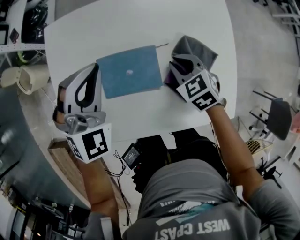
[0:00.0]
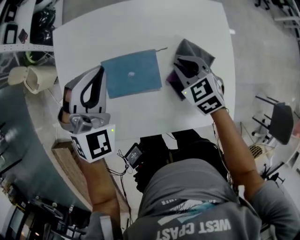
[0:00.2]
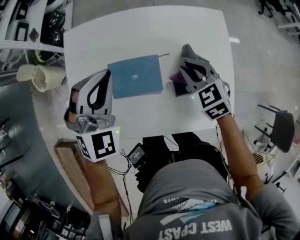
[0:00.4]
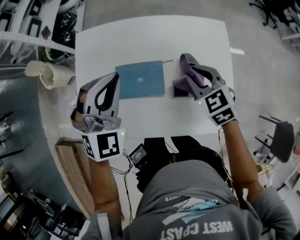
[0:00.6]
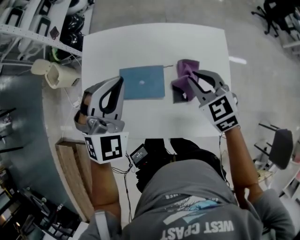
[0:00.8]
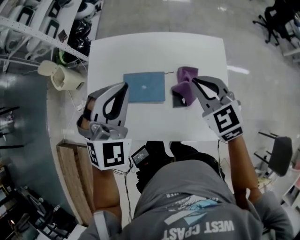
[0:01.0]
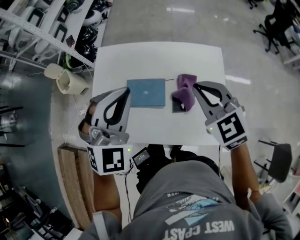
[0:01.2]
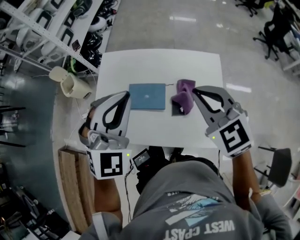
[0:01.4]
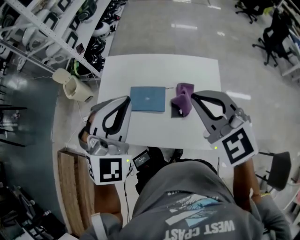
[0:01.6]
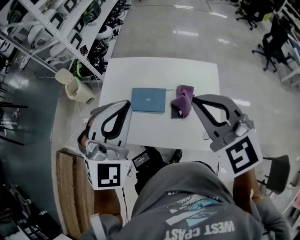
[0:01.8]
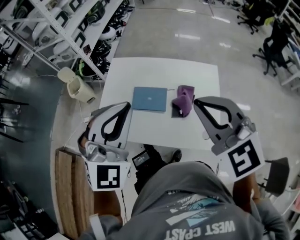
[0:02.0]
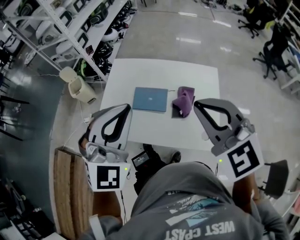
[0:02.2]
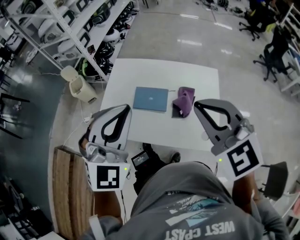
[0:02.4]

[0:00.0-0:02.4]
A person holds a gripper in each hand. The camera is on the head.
0.0 to 1.2 s: The left gripper travels upward and backward by some 20 cm. Meanwhile the right gripper shifts about 30 cm upward, and turns by about 30 degrees.
1.2 to 2.4 s: The right gripper travels upward and backward by about 20 cm. Meanwhile the left gripper goes approximately 15 cm backward and upward.

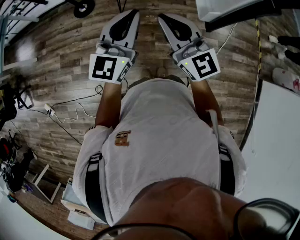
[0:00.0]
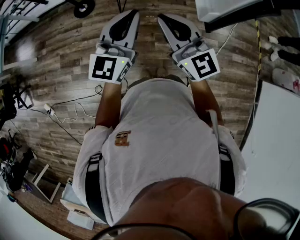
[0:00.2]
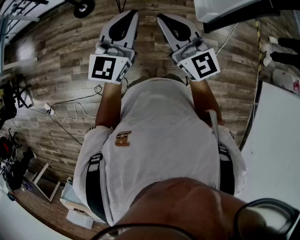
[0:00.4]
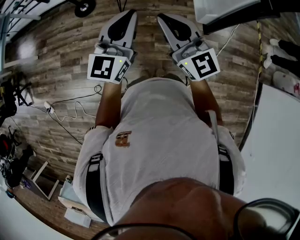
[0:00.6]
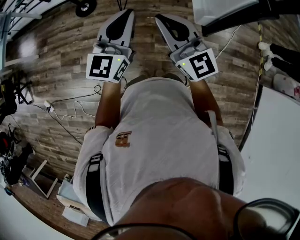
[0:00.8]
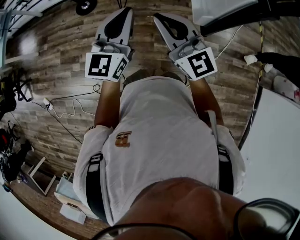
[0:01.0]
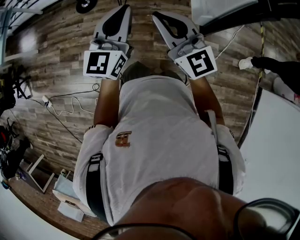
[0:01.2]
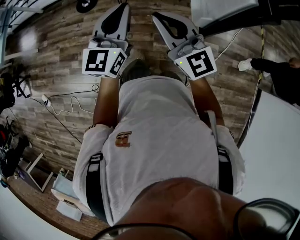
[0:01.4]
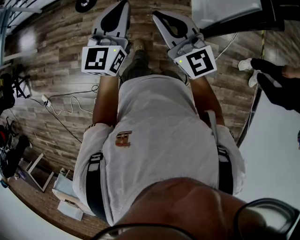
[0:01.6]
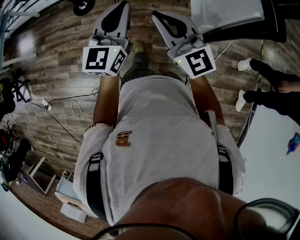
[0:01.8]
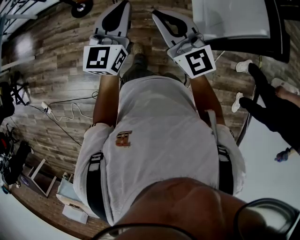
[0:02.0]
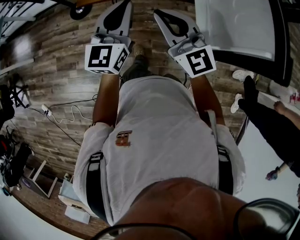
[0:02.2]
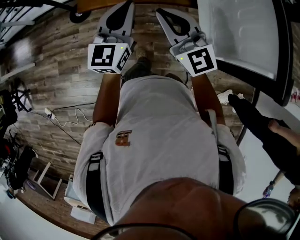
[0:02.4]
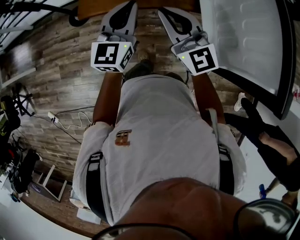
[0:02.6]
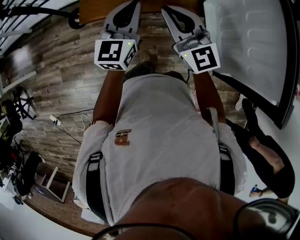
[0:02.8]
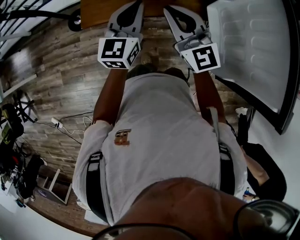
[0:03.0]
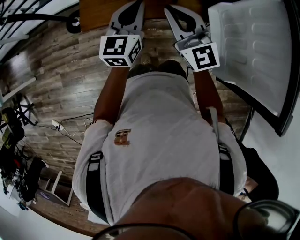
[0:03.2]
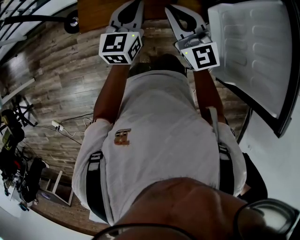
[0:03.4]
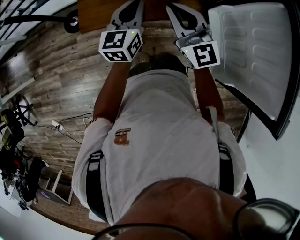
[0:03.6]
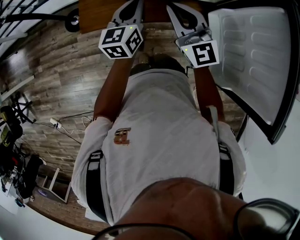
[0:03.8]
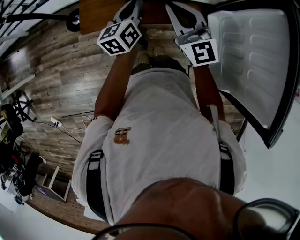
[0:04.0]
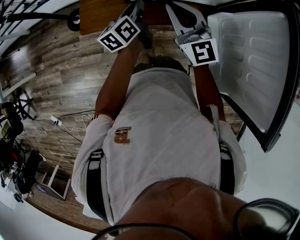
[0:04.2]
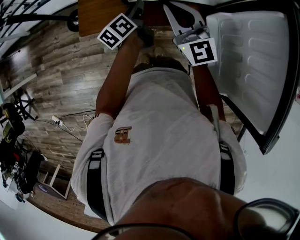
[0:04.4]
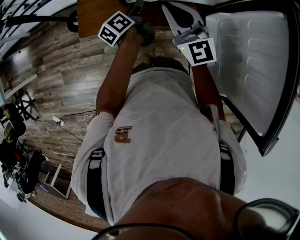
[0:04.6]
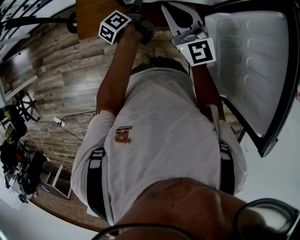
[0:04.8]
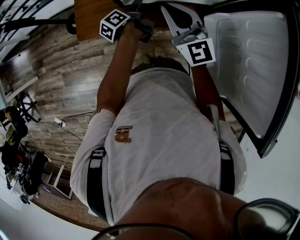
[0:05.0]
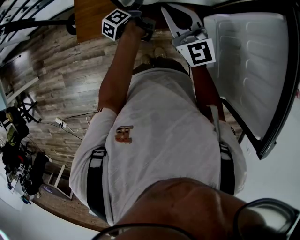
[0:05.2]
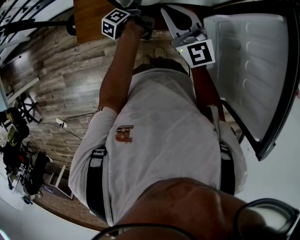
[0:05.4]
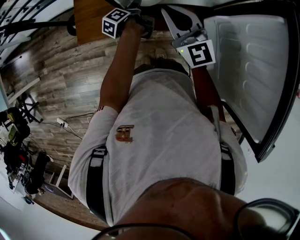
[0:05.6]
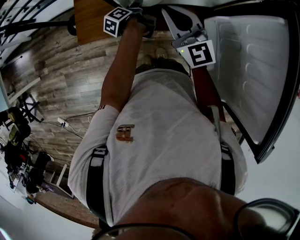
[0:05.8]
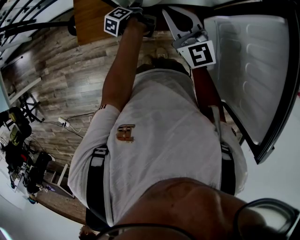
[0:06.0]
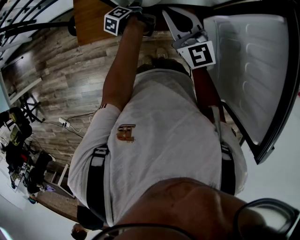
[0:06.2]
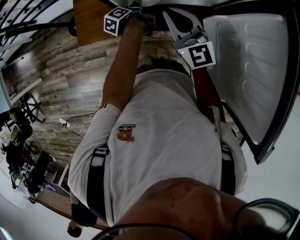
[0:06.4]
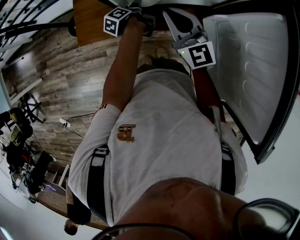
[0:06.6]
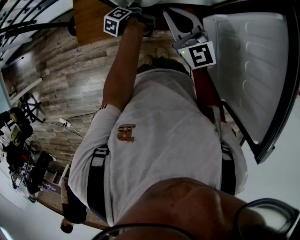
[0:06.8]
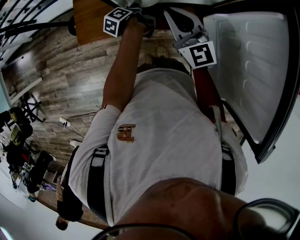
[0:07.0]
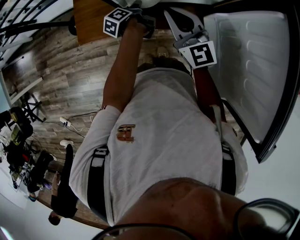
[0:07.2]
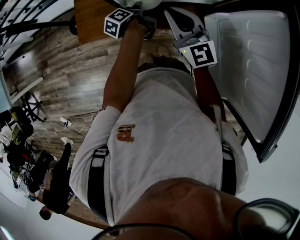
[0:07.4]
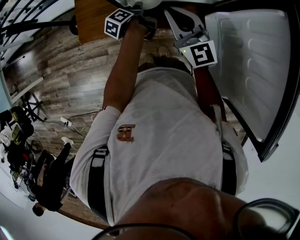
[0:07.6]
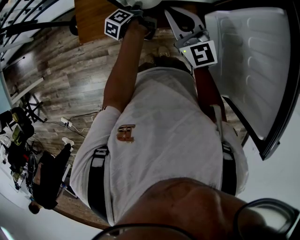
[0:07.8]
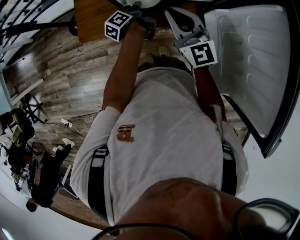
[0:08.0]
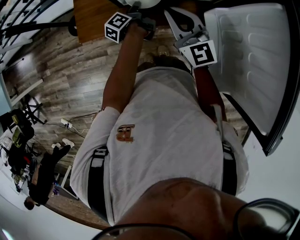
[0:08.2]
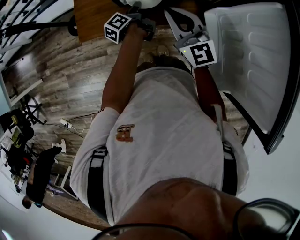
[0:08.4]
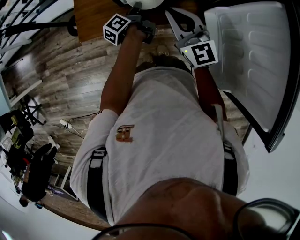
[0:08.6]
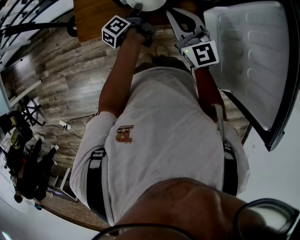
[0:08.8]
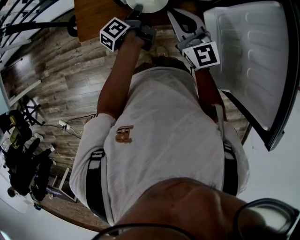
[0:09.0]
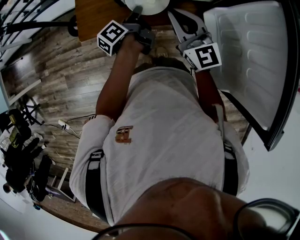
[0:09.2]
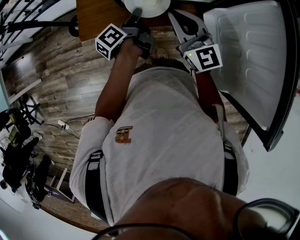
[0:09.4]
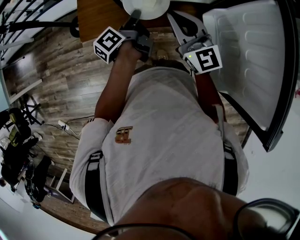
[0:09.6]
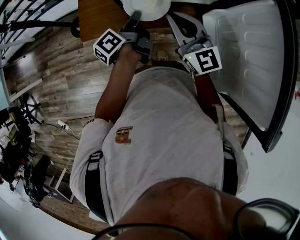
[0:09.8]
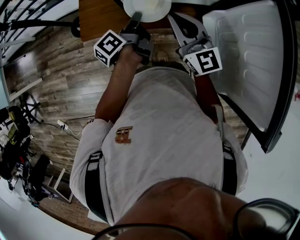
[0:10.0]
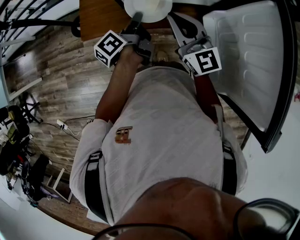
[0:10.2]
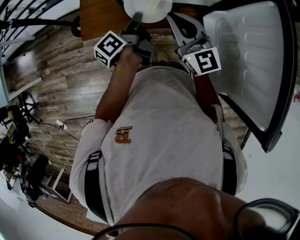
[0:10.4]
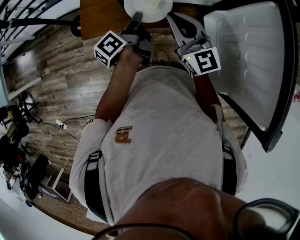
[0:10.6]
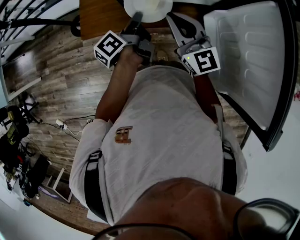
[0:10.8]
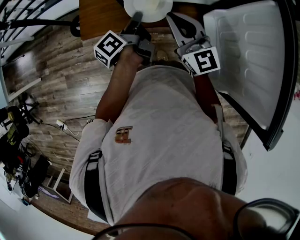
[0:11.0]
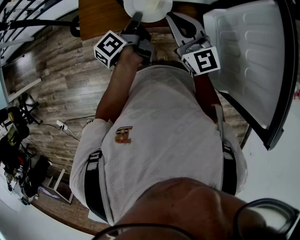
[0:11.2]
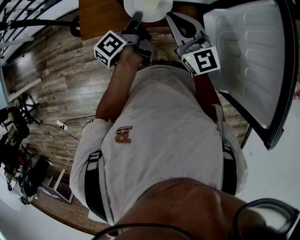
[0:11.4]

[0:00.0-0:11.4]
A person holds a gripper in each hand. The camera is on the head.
0.0 to 1.4 s: The right gripper goes roughly 10 cm to the right and forward, while the left gripper goes approximately 10 cm forward and to the right.
1.4 to 2.8 s: Both grippers travel together forward, some 35 cm.
2.8 to 4.2 s: The left gripper goes roughly 20 cm forward and downward, and twists about 40 degrees counterclockwise, seen from behind. Meanwhile the right gripper heads forward, covering about 10 cm.
4.2 to 5.6 s: The left gripper moves downward and forward, roughly 15 cm, rolls counterclockwise, seen from behind, by about 40 degrees, and opens its fingers, while the right gripper moves some 5 cm.
5.6 to 7.2 s: The left gripper closes.
7.2 to 8.6 s: The left gripper closes its fingers.
8.6 to 10.0 s: The left gripper shifts roughly 10 cm upward and backward.
10.0 to 11.4 s: Both grippers stay about where they are.

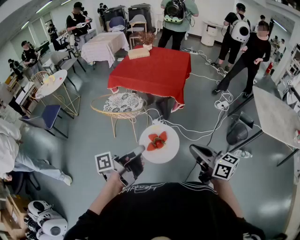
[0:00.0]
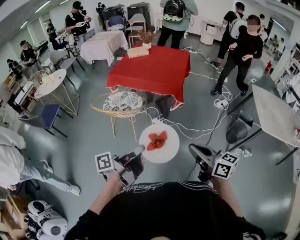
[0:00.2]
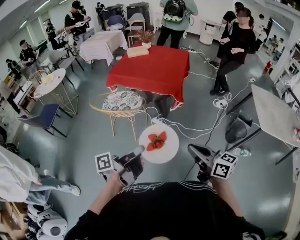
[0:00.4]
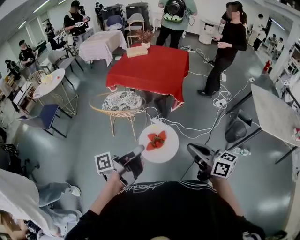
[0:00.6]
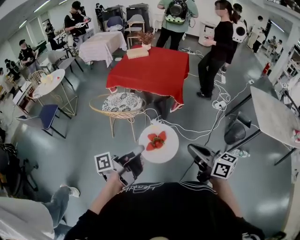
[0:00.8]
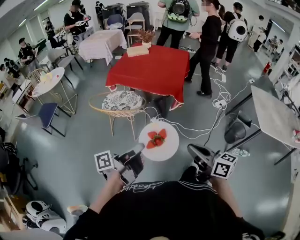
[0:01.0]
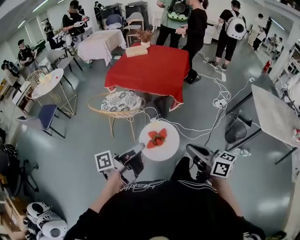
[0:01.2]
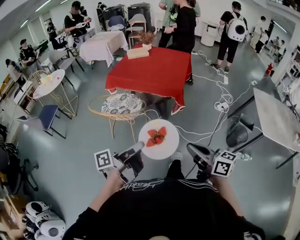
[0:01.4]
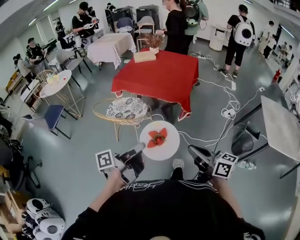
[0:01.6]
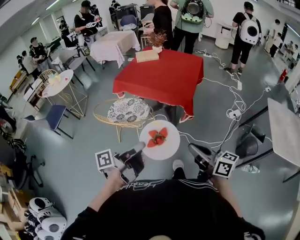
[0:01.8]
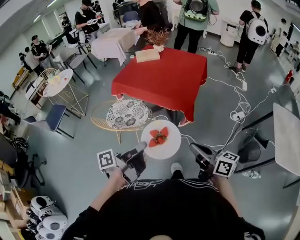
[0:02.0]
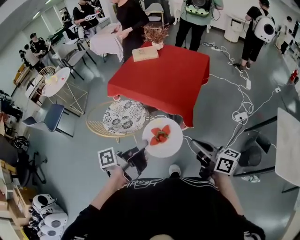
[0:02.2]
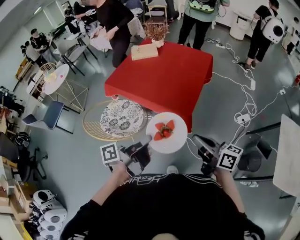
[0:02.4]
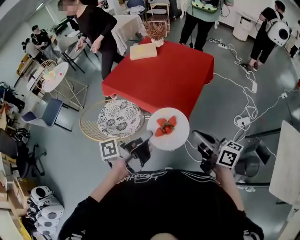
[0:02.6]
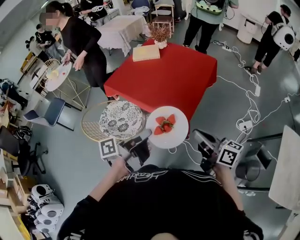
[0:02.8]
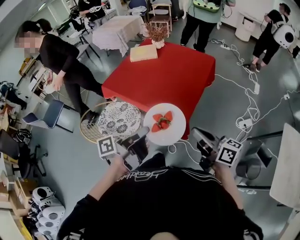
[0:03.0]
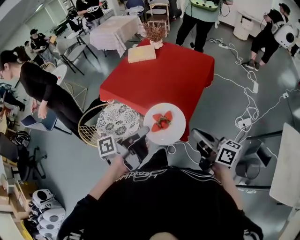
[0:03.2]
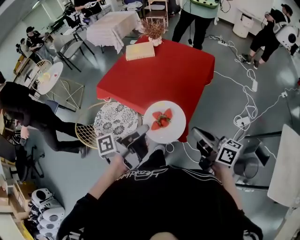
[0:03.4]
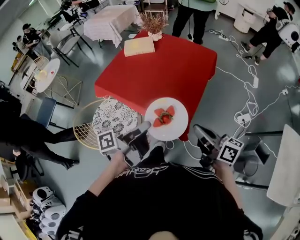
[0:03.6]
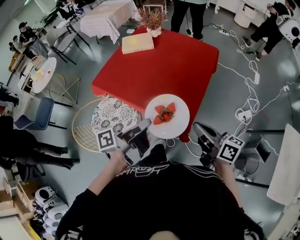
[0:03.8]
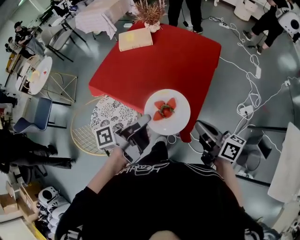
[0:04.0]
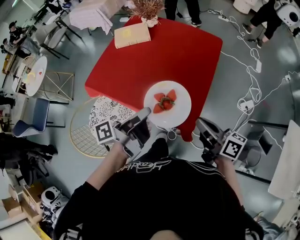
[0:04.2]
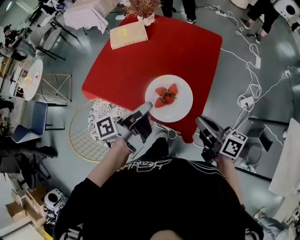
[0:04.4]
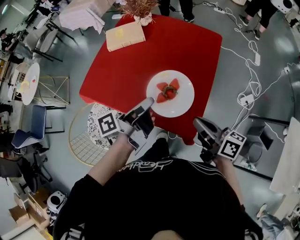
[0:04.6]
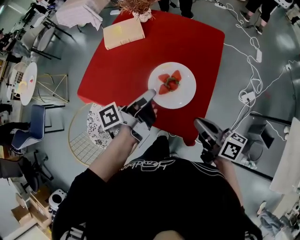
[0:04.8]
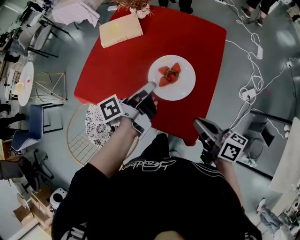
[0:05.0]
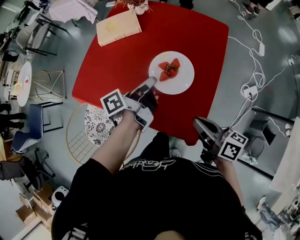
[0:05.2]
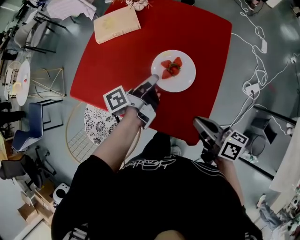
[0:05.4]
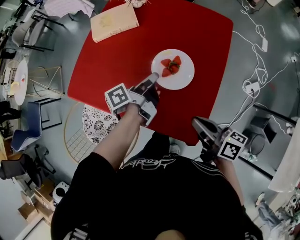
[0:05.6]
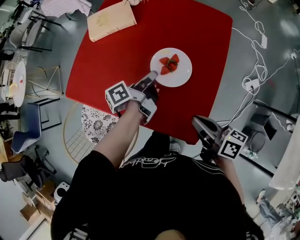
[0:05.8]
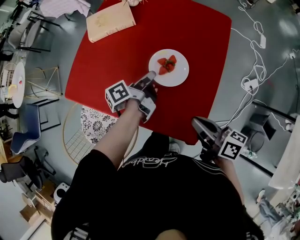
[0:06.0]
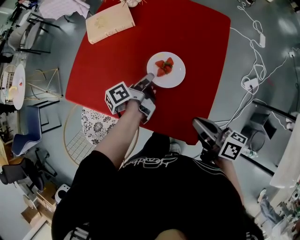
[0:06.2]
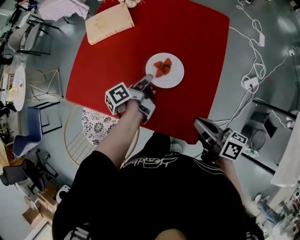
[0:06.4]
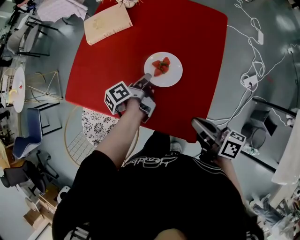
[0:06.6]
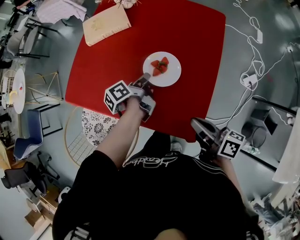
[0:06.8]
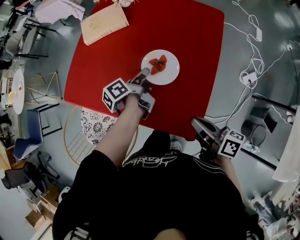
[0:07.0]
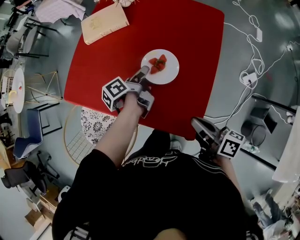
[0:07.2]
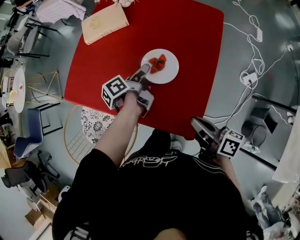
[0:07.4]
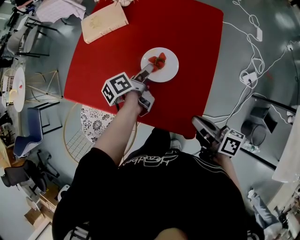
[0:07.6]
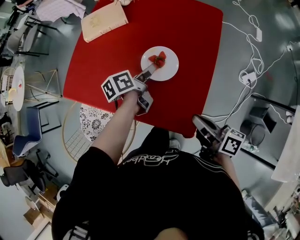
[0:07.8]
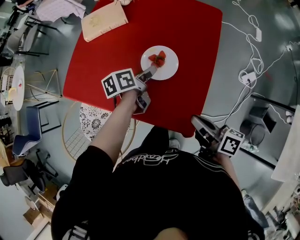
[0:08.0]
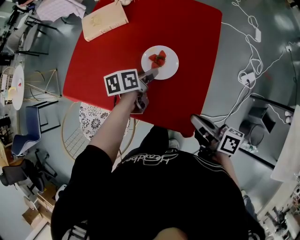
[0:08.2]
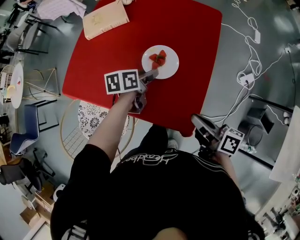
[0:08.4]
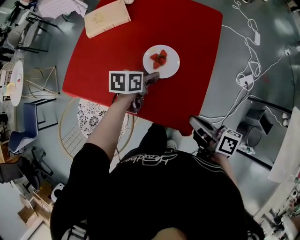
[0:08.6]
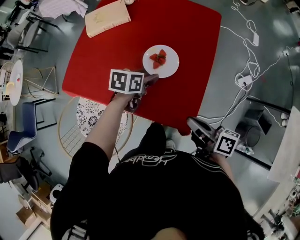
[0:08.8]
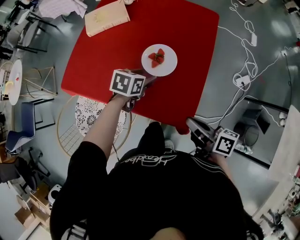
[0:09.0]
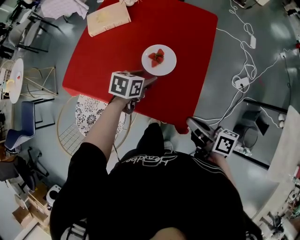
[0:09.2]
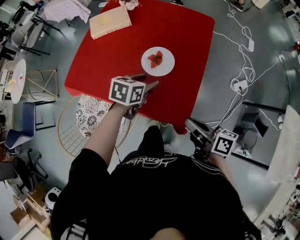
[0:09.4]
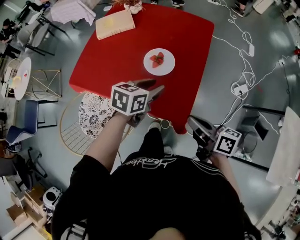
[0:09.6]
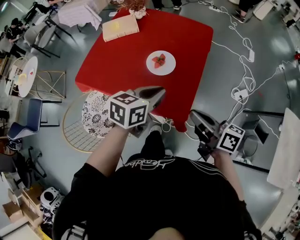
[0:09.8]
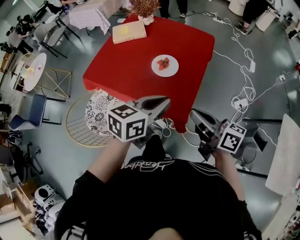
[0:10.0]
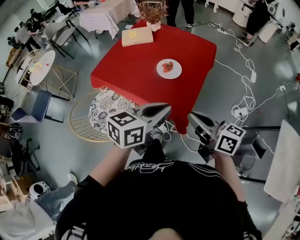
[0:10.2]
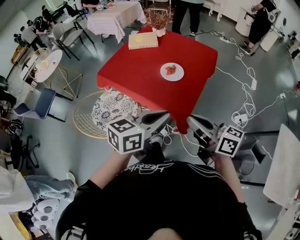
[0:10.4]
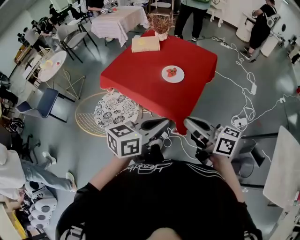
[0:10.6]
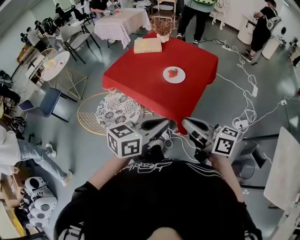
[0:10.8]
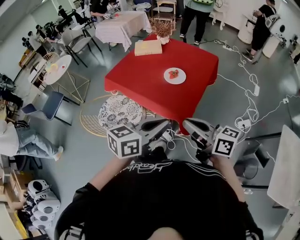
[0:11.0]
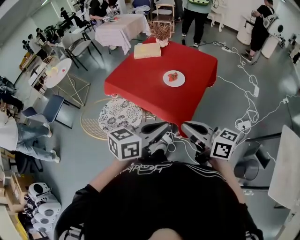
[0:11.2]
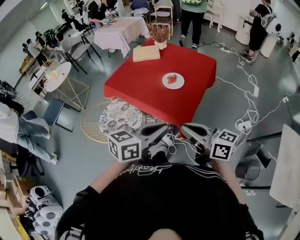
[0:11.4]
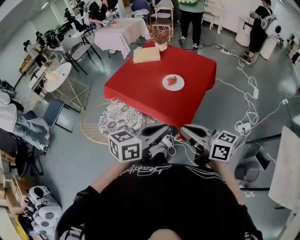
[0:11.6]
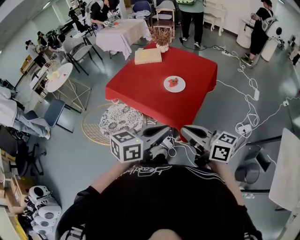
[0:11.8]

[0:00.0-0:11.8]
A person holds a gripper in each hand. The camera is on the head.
0.0 to 1.4 s: The grippers stay close to where they were, moving slightly.
1.4 to 3.0 s: Both grippers are carried forward and to the right, approximately 40 cm.
3.0 to 4.4 s: The grippers both shift forward by some 20 cm.
4.4 to 6.0 s: The left gripper moves forward and downward, approximately 25 cm, while the right gripper goes roughly 10 cm downward and forward.
6.0 to 7.4 s: The left gripper opens.
7.4 to 8.8 s: The left gripper ends up some 5 cm from where it was, and twists about 60 degrees clockwise, seen from behind.
8.8 to 10.4 s: The right gripper is displaced upward and backward by roughly 25 cm, and rotates approximately 40 degrees, while the left gripper moves backward and upward, about 40 cm, points its fingers about 30 degrees further upward, and closes up.
10.4 to 11.8 s: There are only small adjustments of the grippers.
